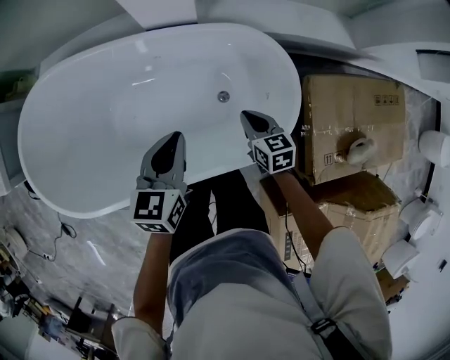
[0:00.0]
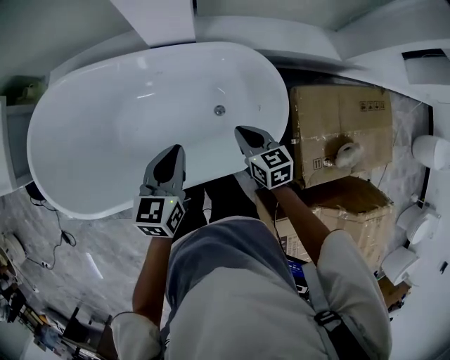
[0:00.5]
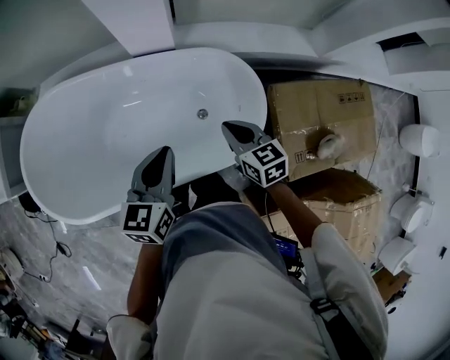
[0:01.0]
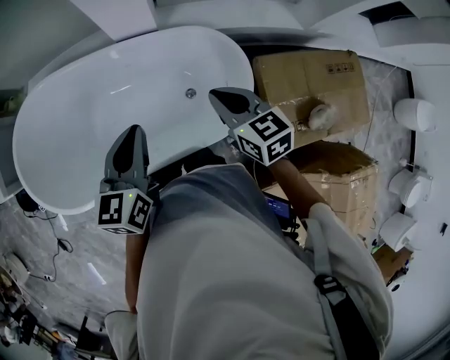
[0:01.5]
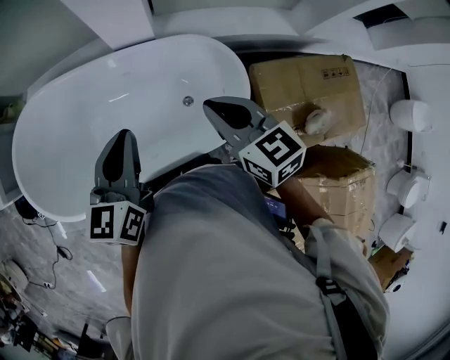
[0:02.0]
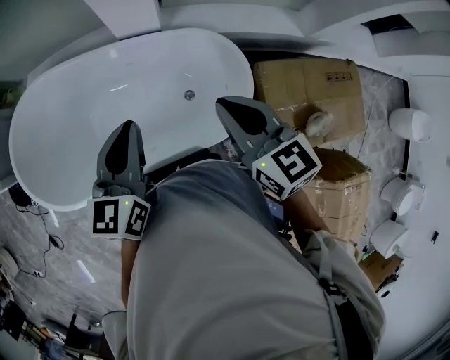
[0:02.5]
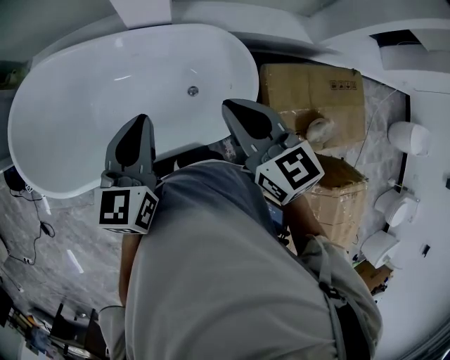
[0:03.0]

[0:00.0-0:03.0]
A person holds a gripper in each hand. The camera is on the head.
0:00.0 to 0:01.5: The left gripper heads upward and backward, covering roughly 20 cm. The right gripper travels upward by approximately 25 cm.
0:01.5 to 0:03.0: The right gripper travels upward by approximately 10 cm.

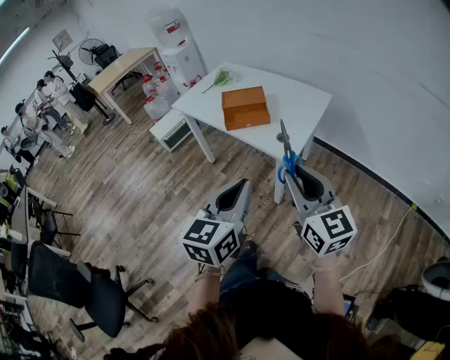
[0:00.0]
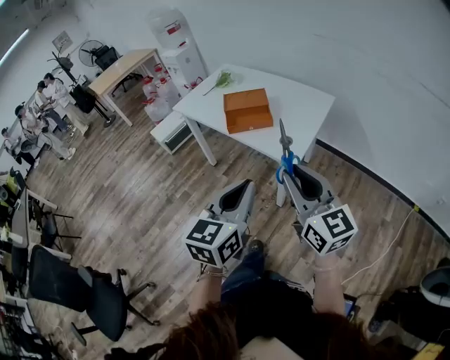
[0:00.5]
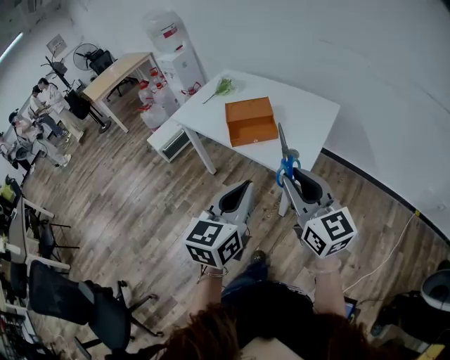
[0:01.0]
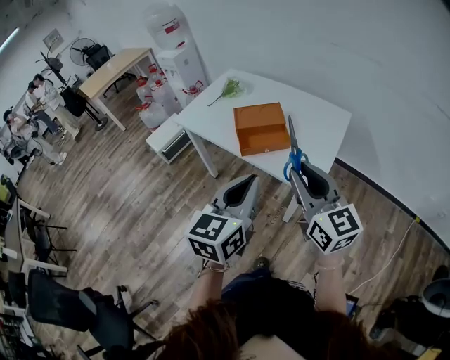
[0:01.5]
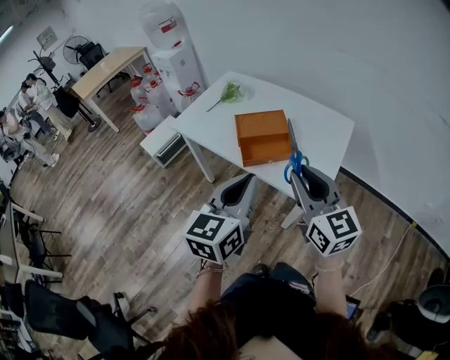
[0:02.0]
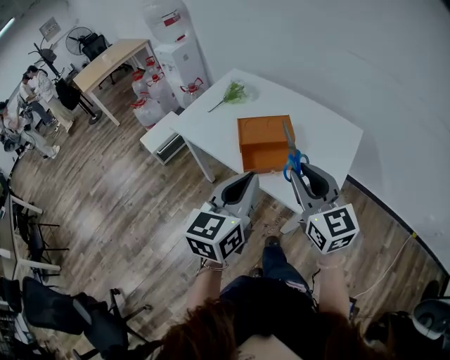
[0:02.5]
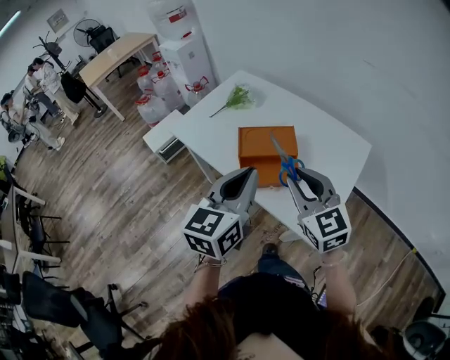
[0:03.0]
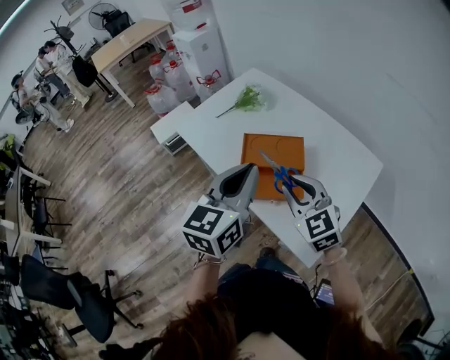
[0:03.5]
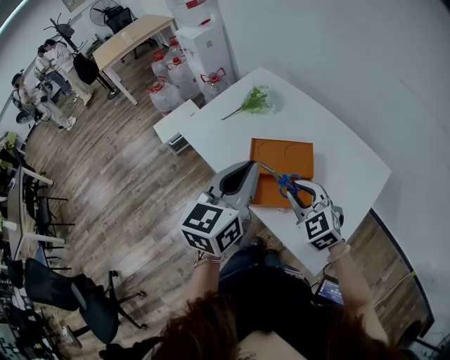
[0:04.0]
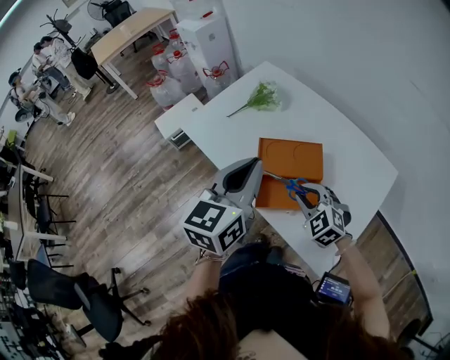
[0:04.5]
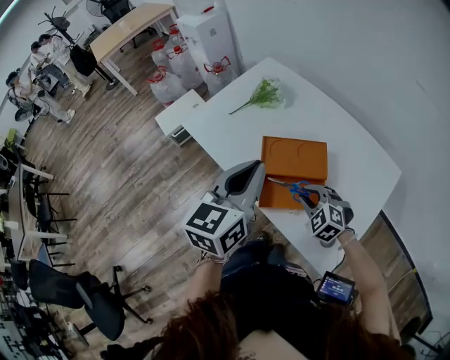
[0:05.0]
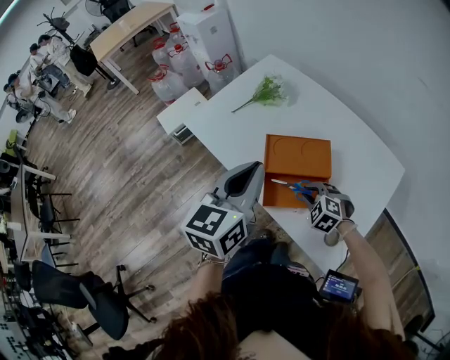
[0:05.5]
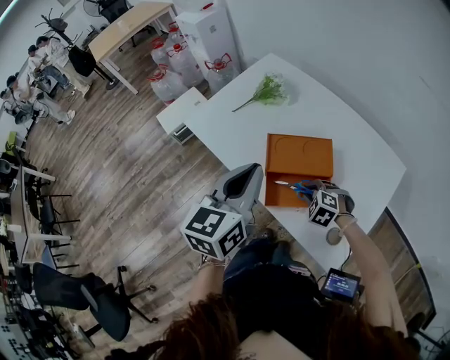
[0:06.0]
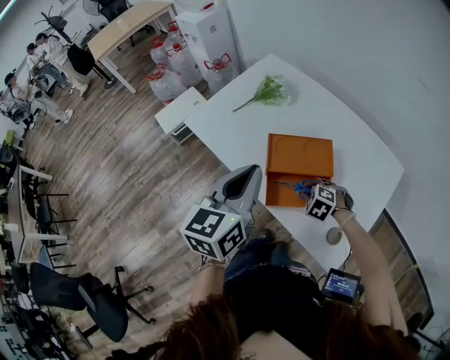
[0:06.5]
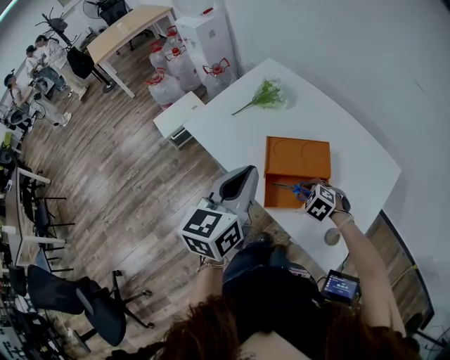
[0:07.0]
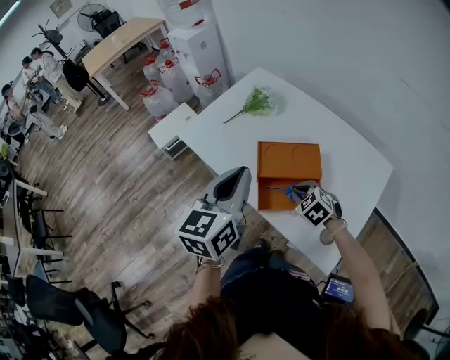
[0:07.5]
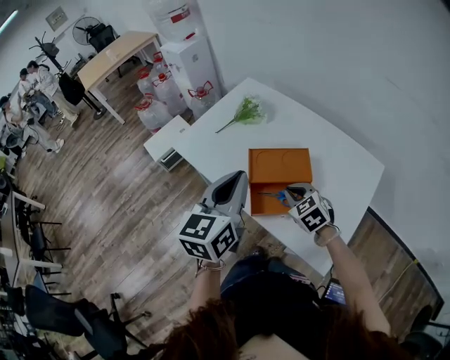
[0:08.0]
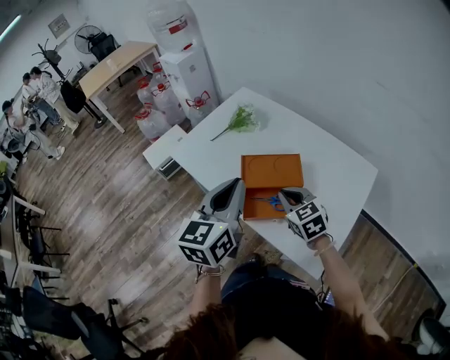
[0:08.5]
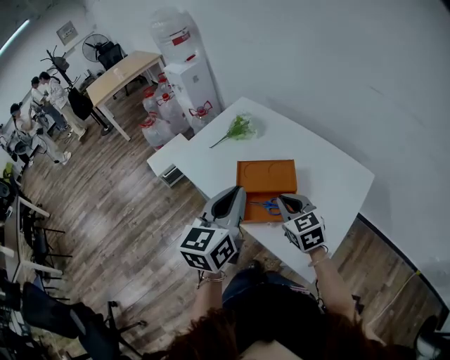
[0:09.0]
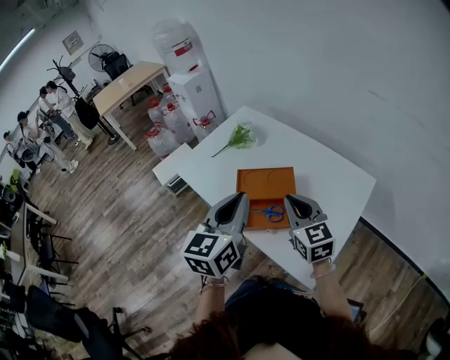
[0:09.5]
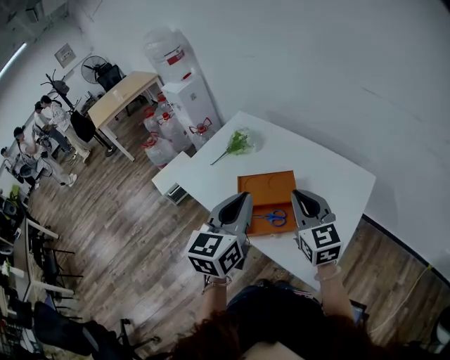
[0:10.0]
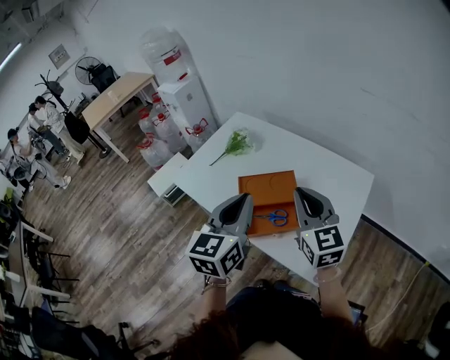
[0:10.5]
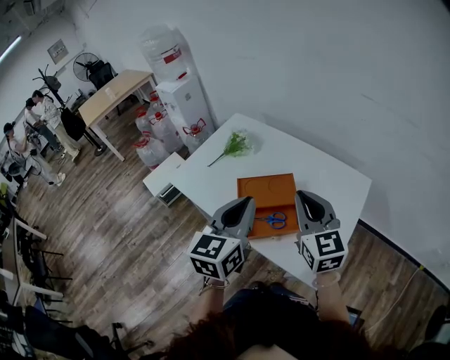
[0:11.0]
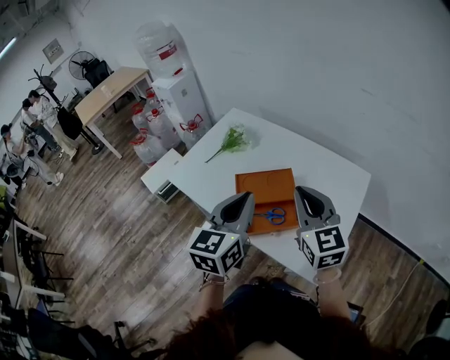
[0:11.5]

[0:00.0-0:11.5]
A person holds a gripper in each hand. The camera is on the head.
0:00.0 to 0:02.0: The two grippers go about 25 cm forward and to the left.
0:02.0 to 0:04.0: The left gripper moves forward, roughly 25 cm, while the right gripper moves forward and downward, some 30 cm, and turns by about 40 degrees.
0:04.0 to 0:06.0: The right gripper goes approximately 20 cm downward, and angles its fingers downward, by roughly 30 degrees, while the left gripper moves roughly 5 cm.
0:06.0 to 0:07.5: The right gripper travels upward by some 5 cm, and turns by some 20 degrees.
0:07.5 to 0:09.5: The left gripper heads to the right and backward, covering about 10 cm, while the right gripper is displaced upward by some 20 cm, and points its fingers some 40 degrees further upward.
0:09.5 to 0:11.5: The right gripper shifts about 10 cm upward.

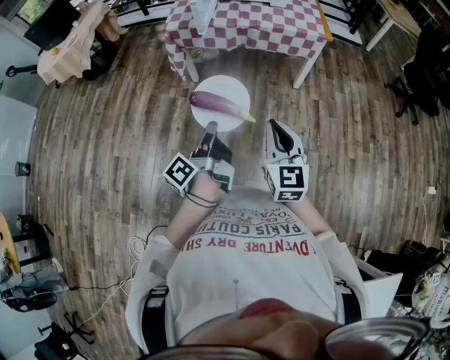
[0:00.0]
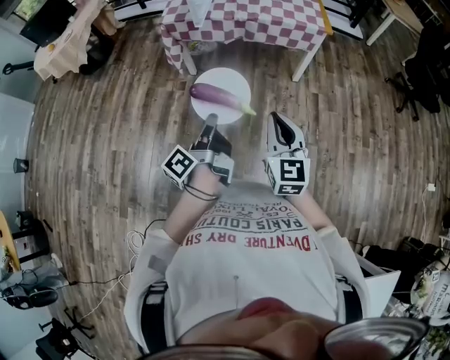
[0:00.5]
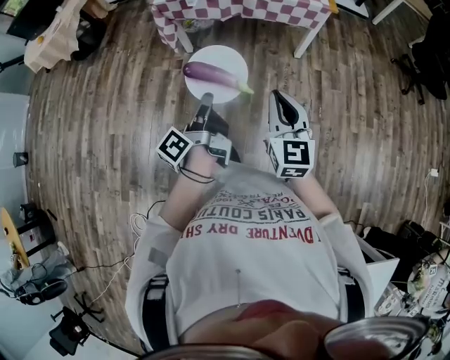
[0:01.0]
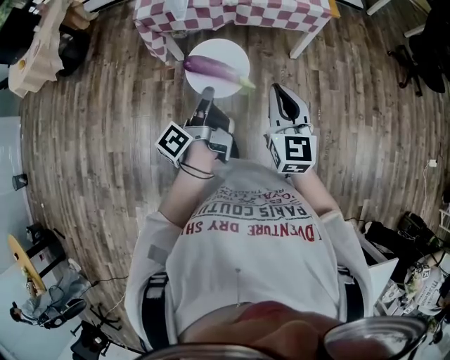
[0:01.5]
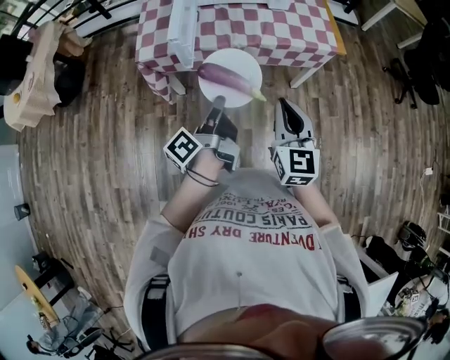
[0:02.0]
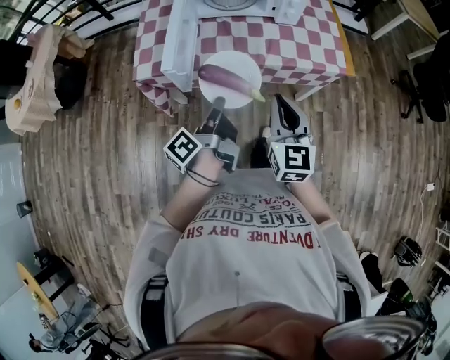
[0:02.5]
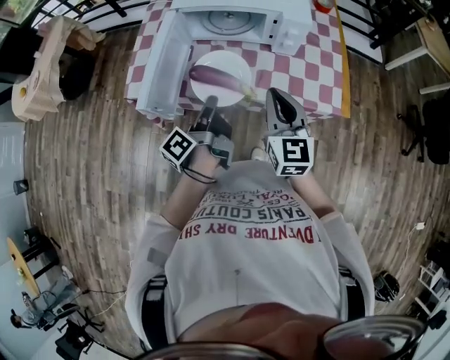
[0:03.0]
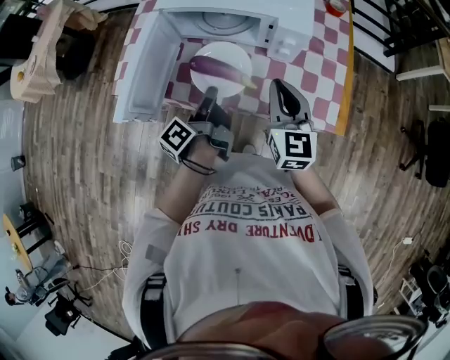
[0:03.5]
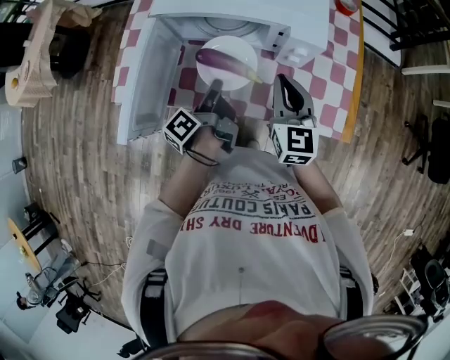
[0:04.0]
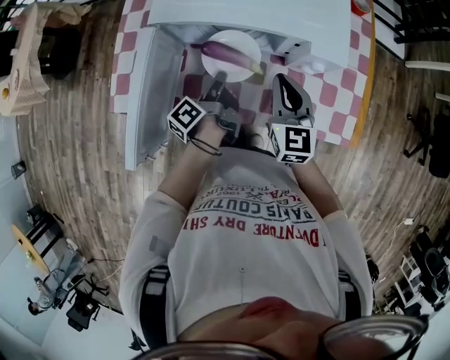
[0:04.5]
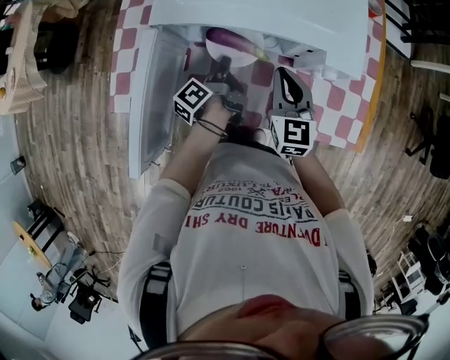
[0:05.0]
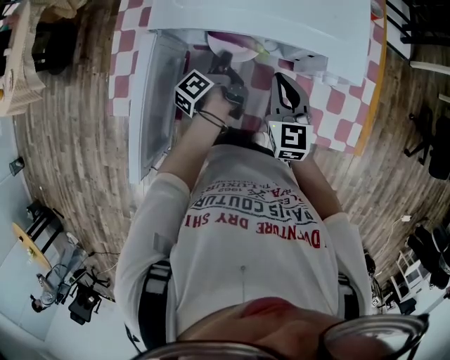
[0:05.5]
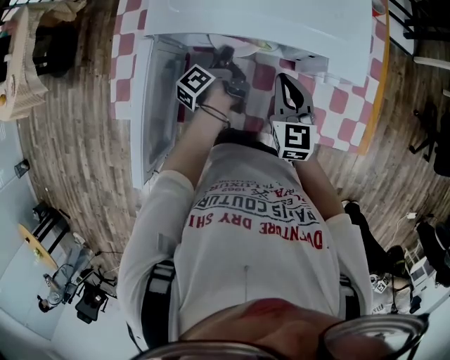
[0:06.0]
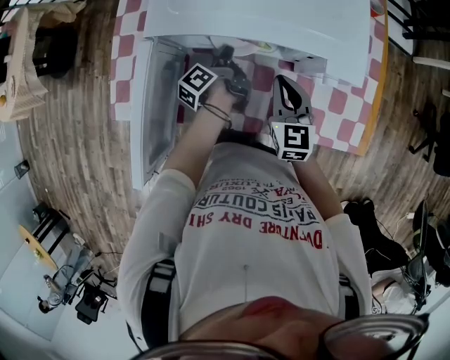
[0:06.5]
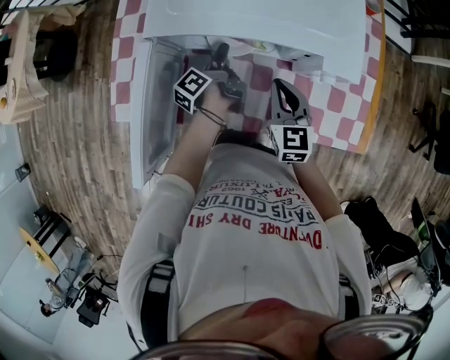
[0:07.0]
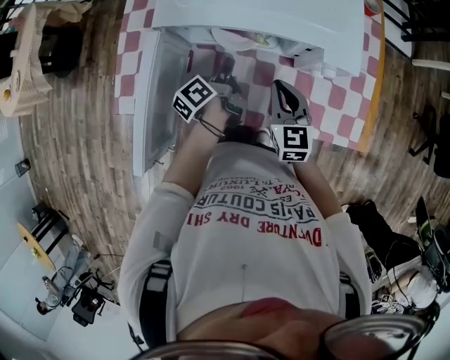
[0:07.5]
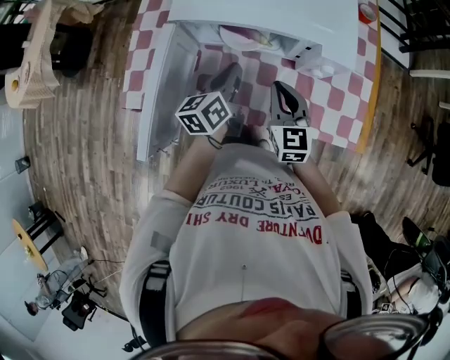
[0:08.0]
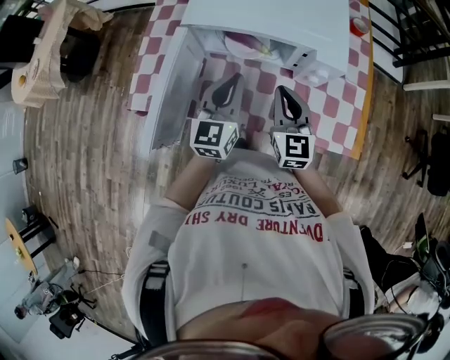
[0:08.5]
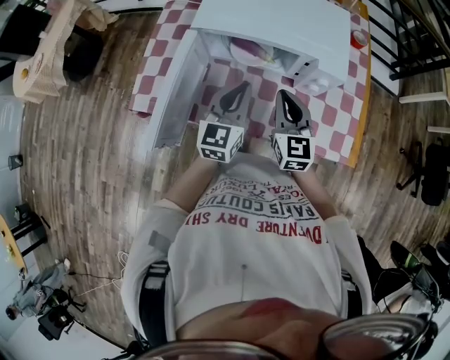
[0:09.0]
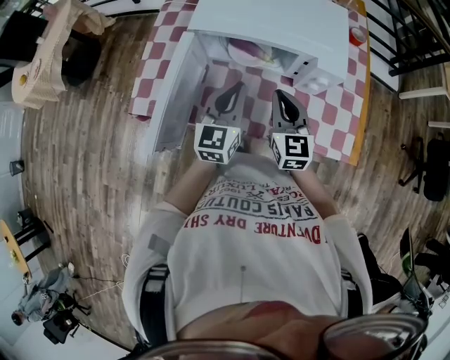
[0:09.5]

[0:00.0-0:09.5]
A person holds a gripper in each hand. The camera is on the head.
0:00.0 to 0:02.0: The right gripper shifts by approximately 35 cm.
0:02.0 to 0:04.0: The right gripper ends up approximately 50 cm from where it was.
0:04.0 to 0:05.5: The right gripper moves about 15 cm.
0:07.5 to 0:09.5: The right gripper is displaced upward by about 10 cm.

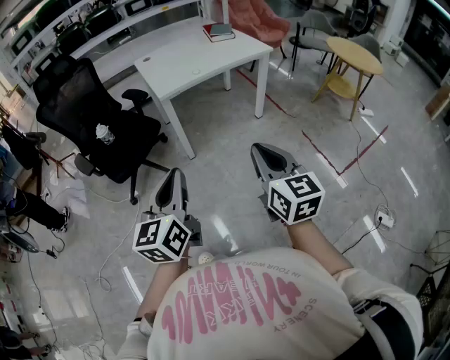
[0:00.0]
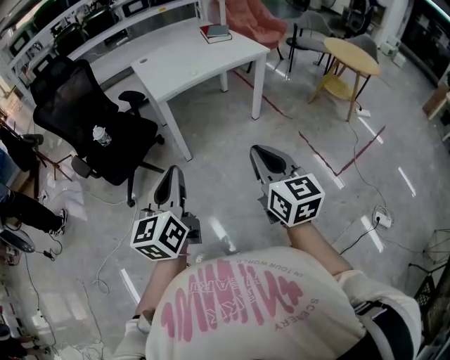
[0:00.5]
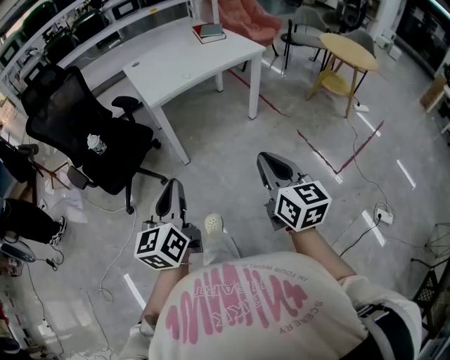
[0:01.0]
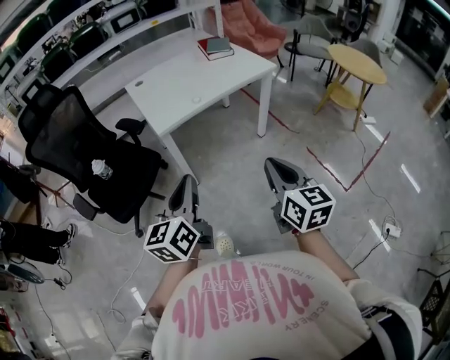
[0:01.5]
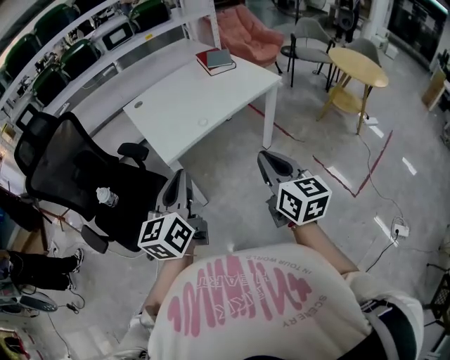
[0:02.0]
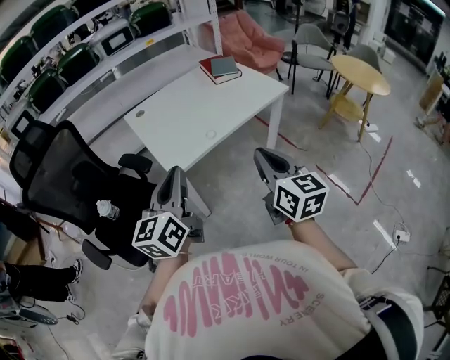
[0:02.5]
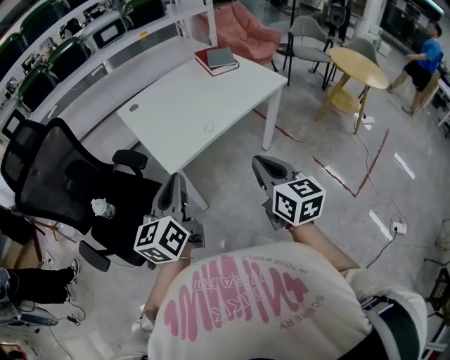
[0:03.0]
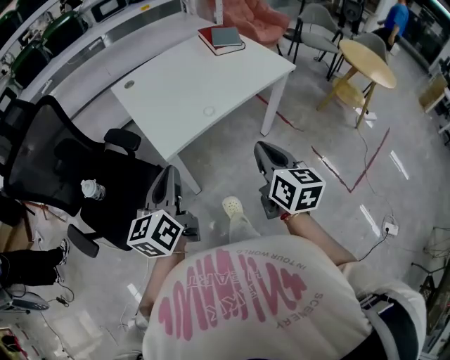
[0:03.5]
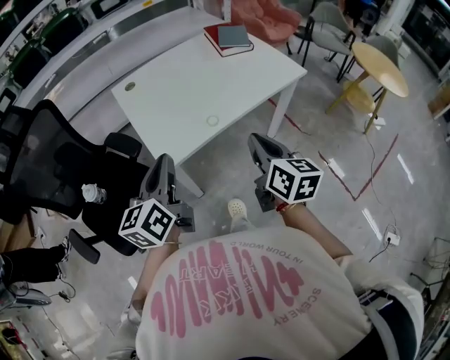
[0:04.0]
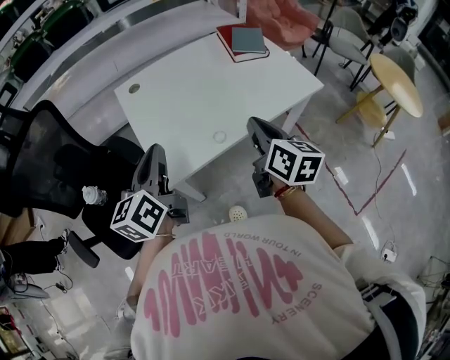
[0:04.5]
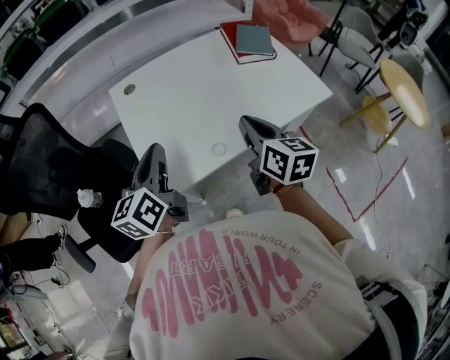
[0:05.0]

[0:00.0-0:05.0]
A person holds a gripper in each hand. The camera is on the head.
0:00.0 to 0:02.5: Both grippers are carried forward, about 50 cm.
0:02.5 to 0:05.0: Both grippers travel together forward, approximately 35 cm.
